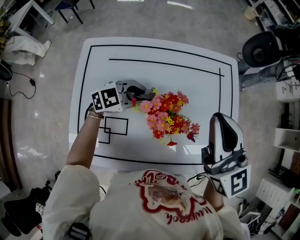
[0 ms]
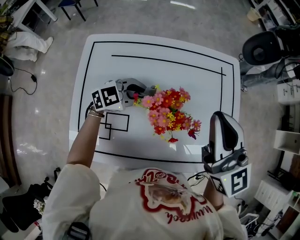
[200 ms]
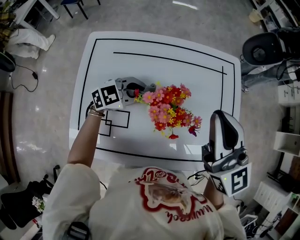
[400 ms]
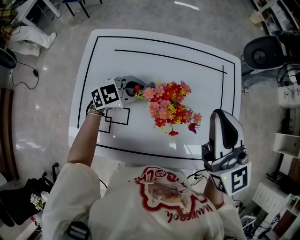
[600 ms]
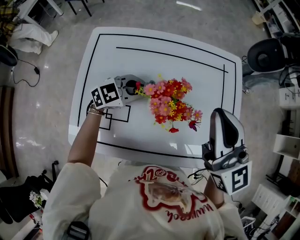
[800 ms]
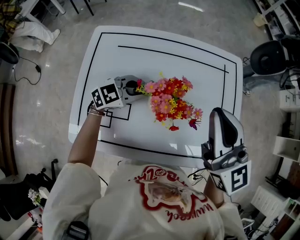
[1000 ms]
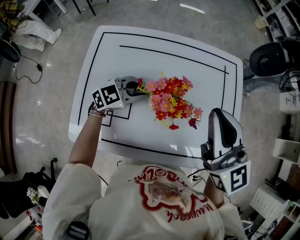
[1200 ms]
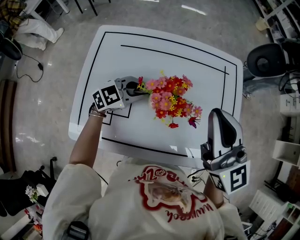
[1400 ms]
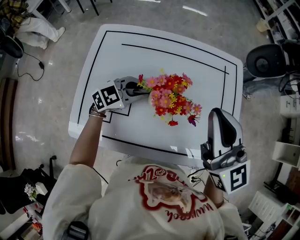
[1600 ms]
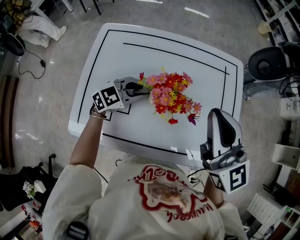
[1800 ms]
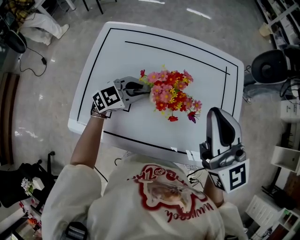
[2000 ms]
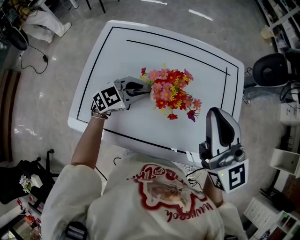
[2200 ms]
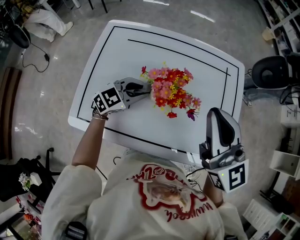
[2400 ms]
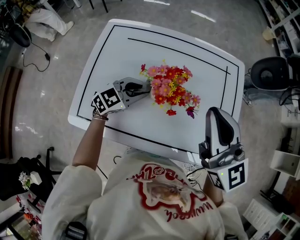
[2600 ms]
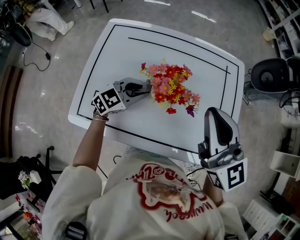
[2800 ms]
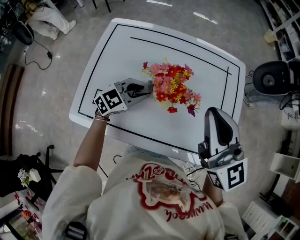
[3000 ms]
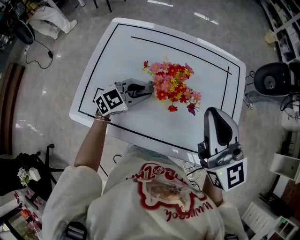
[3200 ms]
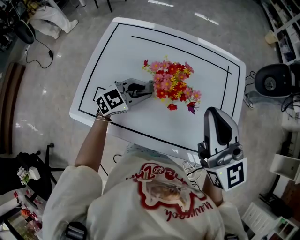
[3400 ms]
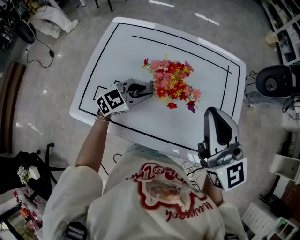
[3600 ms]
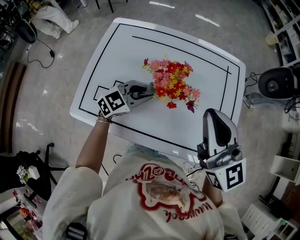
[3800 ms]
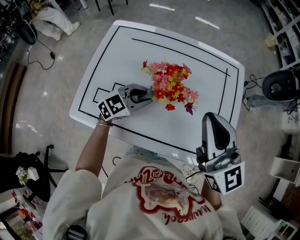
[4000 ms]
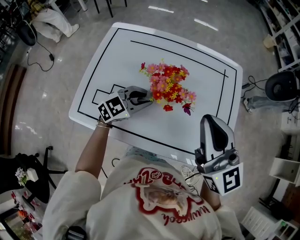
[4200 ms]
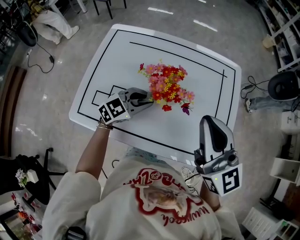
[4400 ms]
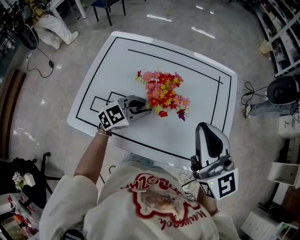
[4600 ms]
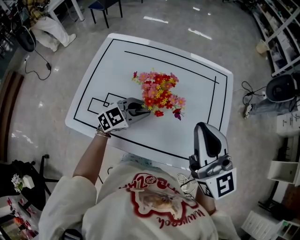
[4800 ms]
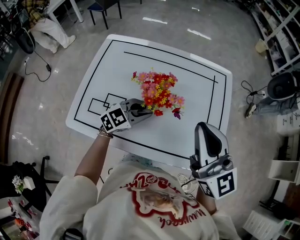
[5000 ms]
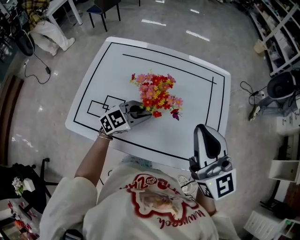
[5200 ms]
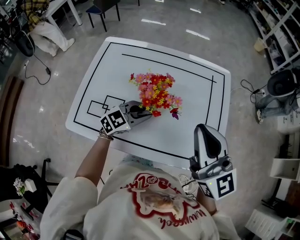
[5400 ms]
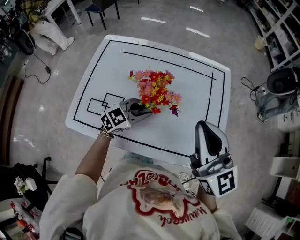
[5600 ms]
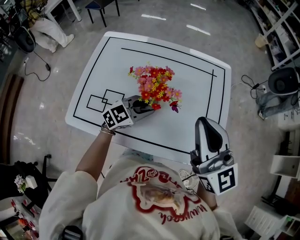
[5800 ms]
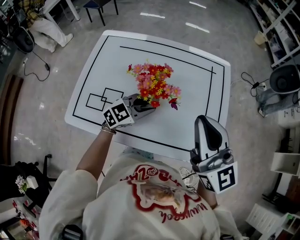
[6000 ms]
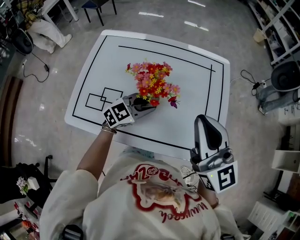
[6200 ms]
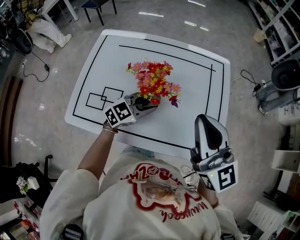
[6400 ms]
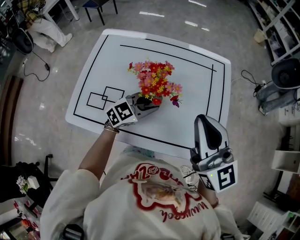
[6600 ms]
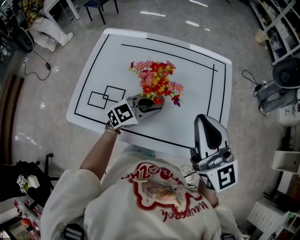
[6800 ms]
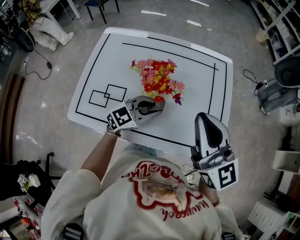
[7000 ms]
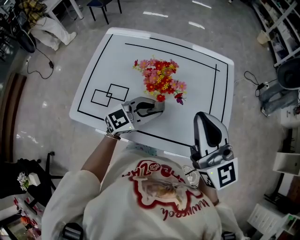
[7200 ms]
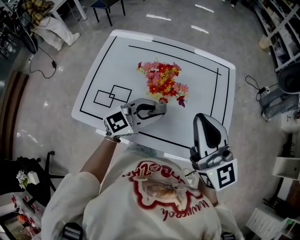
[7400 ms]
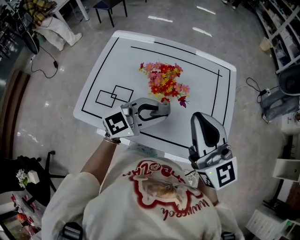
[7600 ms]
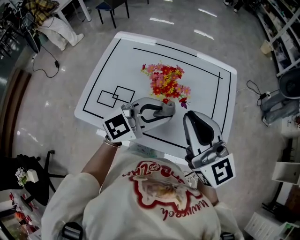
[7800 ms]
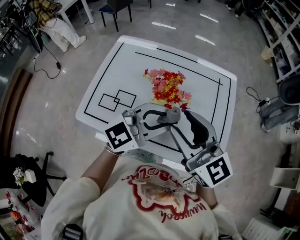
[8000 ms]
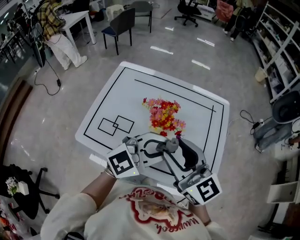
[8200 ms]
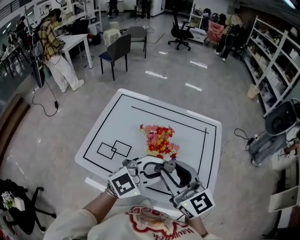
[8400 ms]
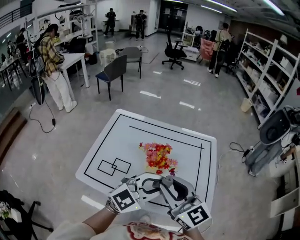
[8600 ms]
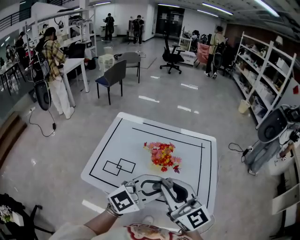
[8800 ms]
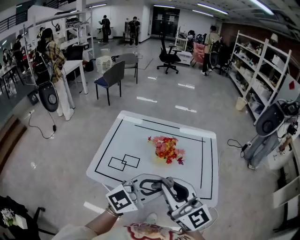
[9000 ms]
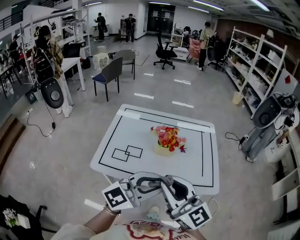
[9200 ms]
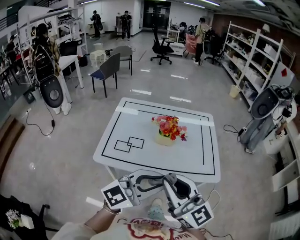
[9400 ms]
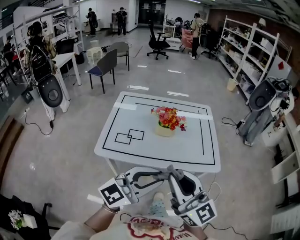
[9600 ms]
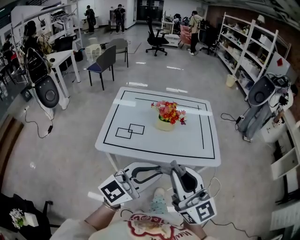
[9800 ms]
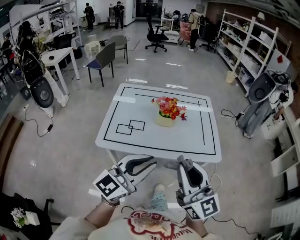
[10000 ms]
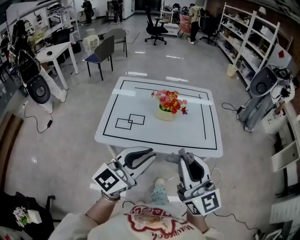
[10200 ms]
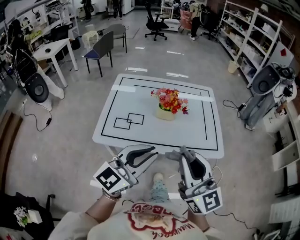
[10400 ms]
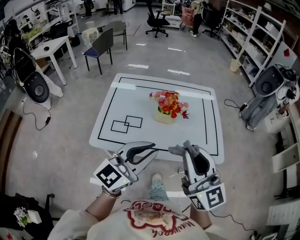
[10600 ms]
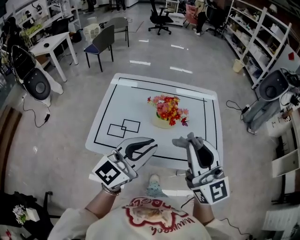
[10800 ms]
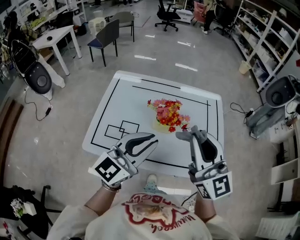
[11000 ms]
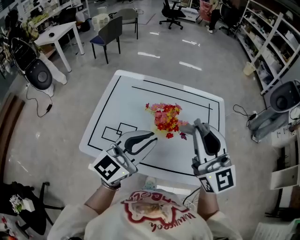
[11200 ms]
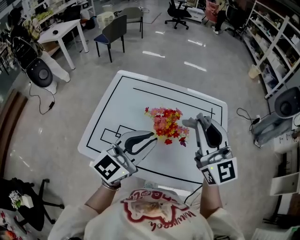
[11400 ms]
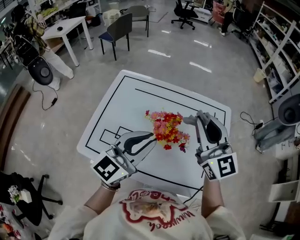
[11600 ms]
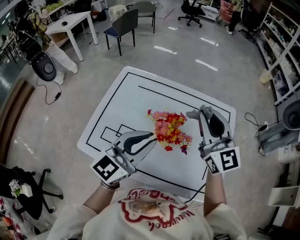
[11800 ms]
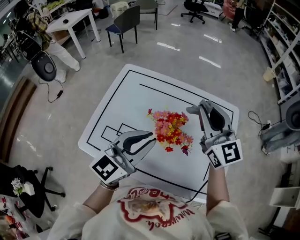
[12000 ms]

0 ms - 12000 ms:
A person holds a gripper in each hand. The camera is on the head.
0 ms - 1600 ms: The grippers stay close to where they were, moving slightly.
1600 ms - 3000 ms: The grippers move only a little.
3000 ms - 4400 ms: The grippers make only small movements.
4400 ms - 6000 ms: The left gripper heads to the right, covering roughly 5 cm.
6000 ms - 7600 ms: The left gripper goes about 15 cm upward and backward.
7600 ms - 9000 ms: The left gripper heads backward and upward, covering approximately 20 cm; the right gripper is displaced backward and to the left by some 15 cm, and opens and closes again.
9000 ms - 10400 ms: The left gripper moves backward and to the left, some 10 cm, while the right gripper shifts approximately 10 cm backward.
10400 ms - 12000 ms: The right gripper travels forward by approximately 40 cm. Meanwhile the left gripper travels forward by some 25 cm.

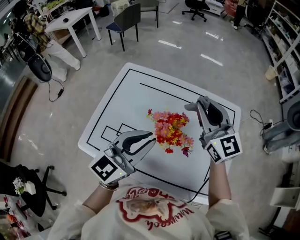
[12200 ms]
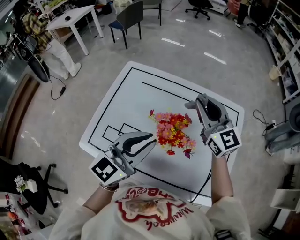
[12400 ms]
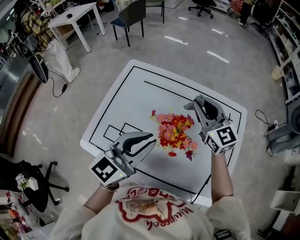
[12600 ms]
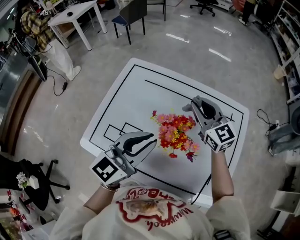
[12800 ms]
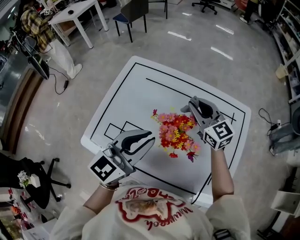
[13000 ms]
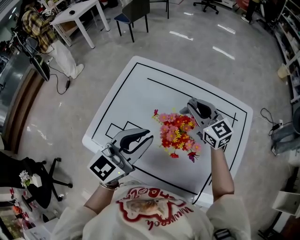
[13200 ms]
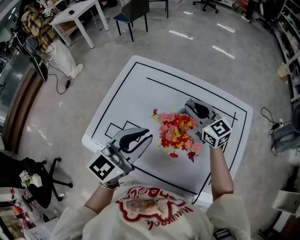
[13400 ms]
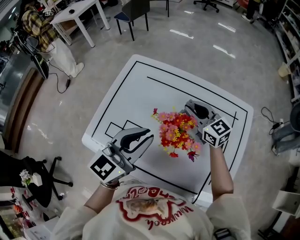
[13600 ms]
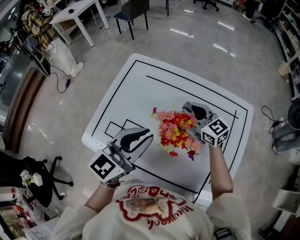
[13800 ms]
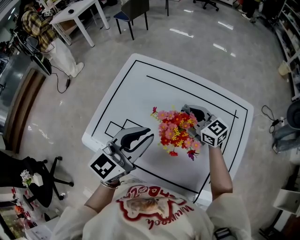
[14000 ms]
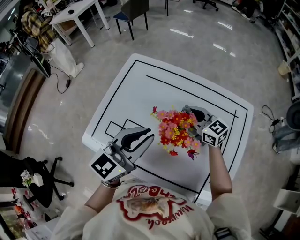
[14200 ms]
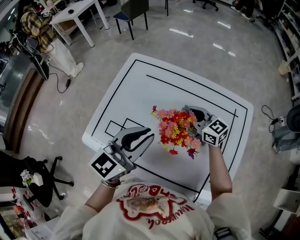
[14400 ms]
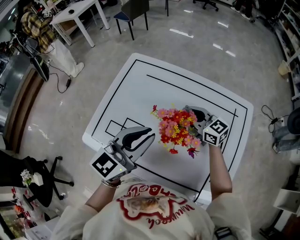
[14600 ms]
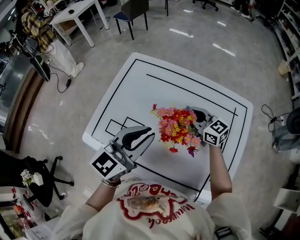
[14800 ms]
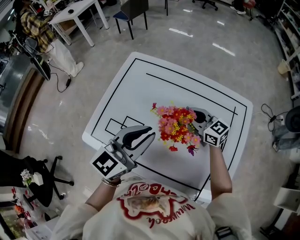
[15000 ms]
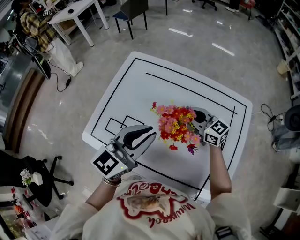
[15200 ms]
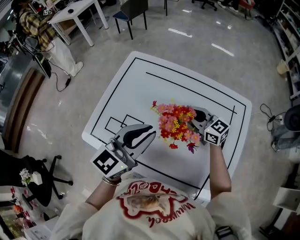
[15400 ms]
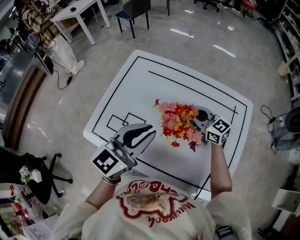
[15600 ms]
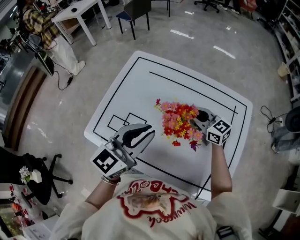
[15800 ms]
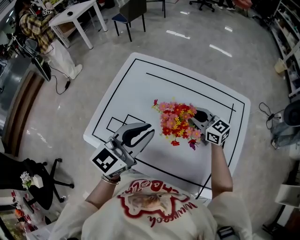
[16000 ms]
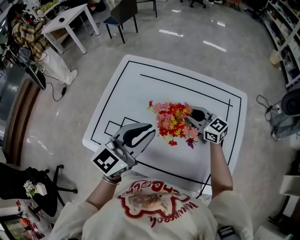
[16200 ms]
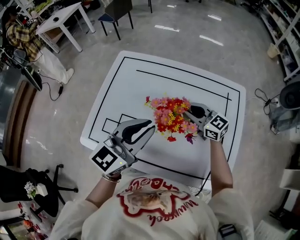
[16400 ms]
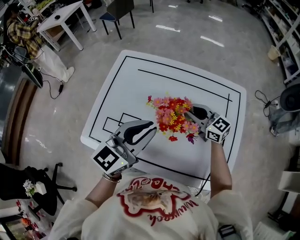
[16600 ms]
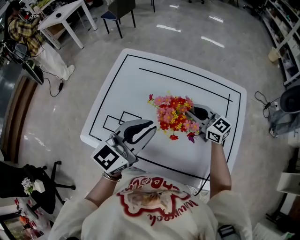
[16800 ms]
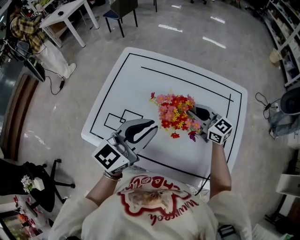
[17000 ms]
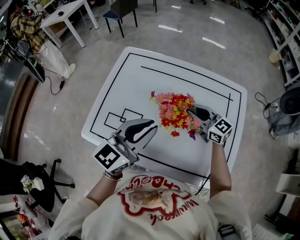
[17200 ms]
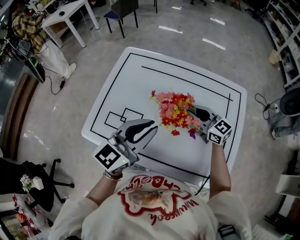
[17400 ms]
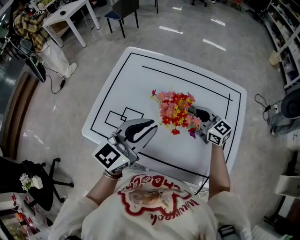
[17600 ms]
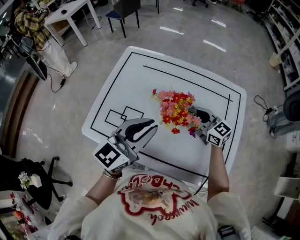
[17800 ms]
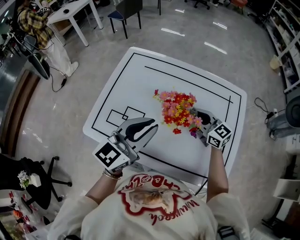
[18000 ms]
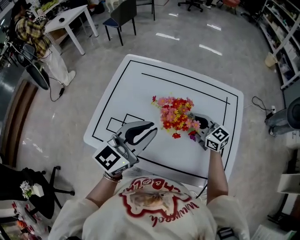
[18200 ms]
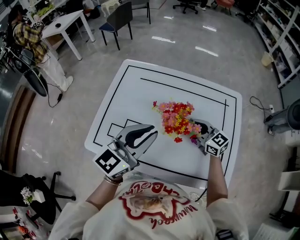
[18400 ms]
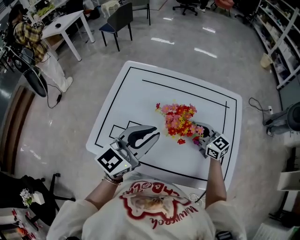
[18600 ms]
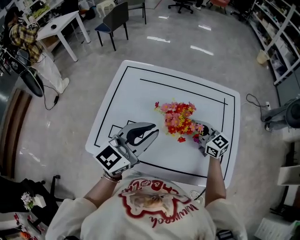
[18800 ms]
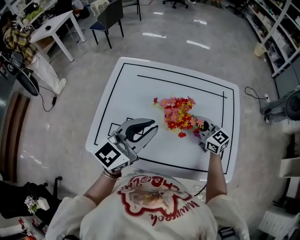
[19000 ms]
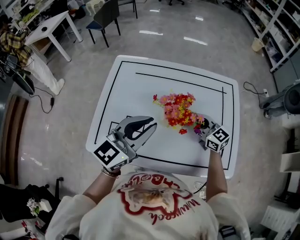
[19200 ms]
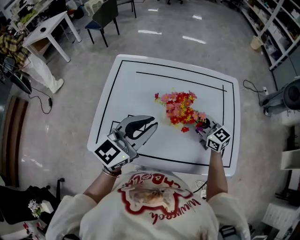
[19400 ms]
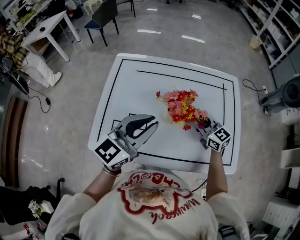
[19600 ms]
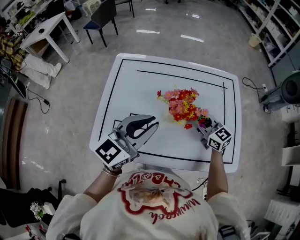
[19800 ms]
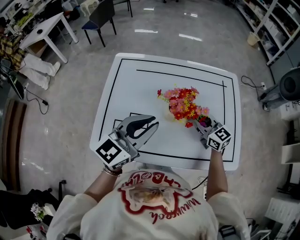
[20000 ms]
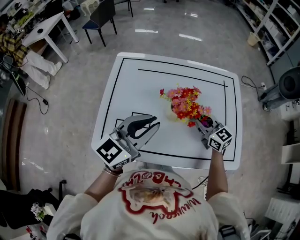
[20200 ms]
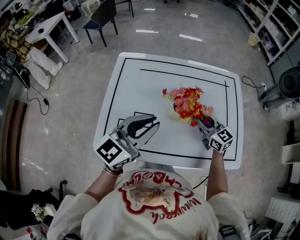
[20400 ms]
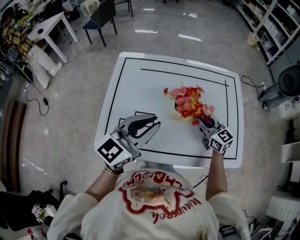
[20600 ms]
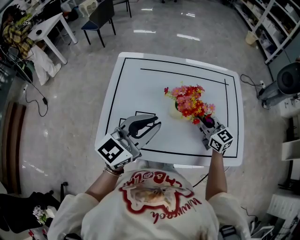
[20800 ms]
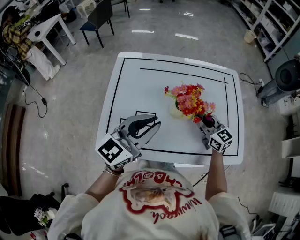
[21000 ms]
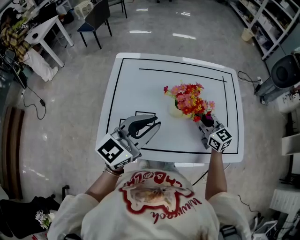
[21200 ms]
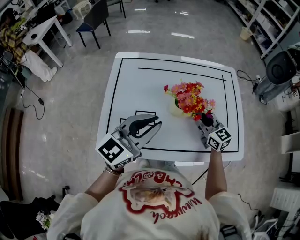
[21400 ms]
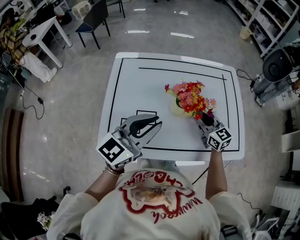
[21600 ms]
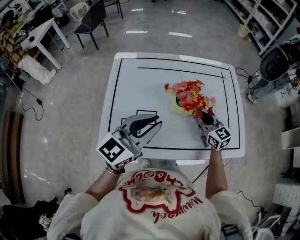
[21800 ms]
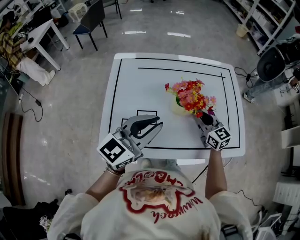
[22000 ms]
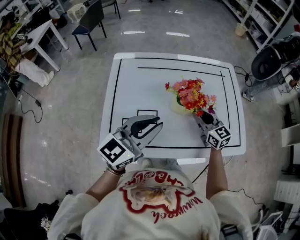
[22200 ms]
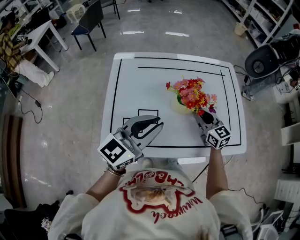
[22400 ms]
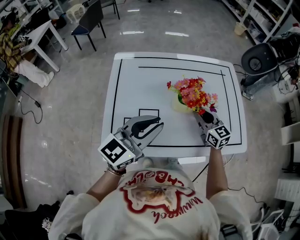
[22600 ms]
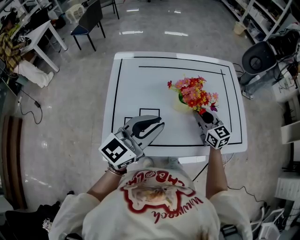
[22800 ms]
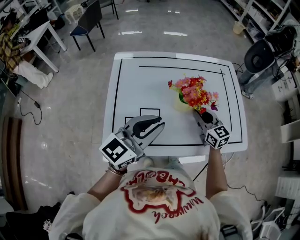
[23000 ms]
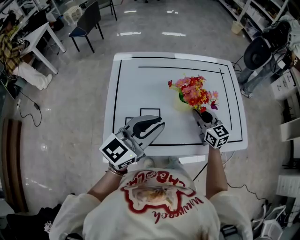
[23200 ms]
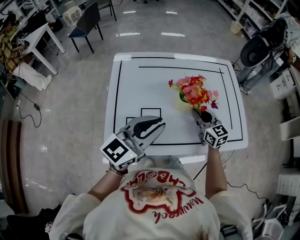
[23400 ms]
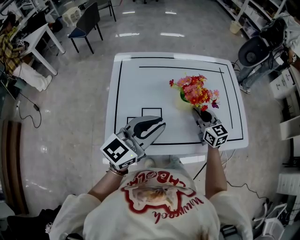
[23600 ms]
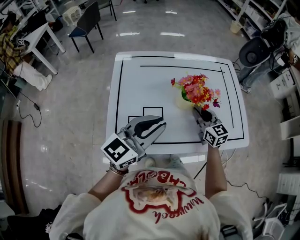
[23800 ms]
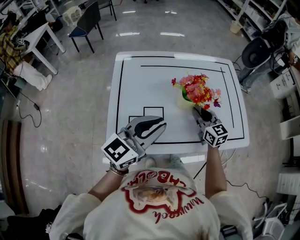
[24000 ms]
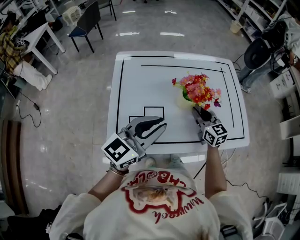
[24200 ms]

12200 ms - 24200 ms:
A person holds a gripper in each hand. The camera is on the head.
12200 ms - 13800 ms: The right gripper heads downward, covering roughly 20 cm, and changes its angle by approximately 30 degrees.
13800 ms - 15200 ms: The grippers move only a little.
15200 ms - 16600 ms: The grippers make only small movements.
16600 ms - 18200 ms: The grippers make only small movements.
18200 ms - 19800 ms: The grippers make only small movements.
19800 ms - 22600 ms: The grippers stay close to where they were, moving slightly.
22600 ms - 24200 ms: The grippers move only a little.
